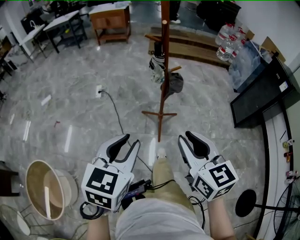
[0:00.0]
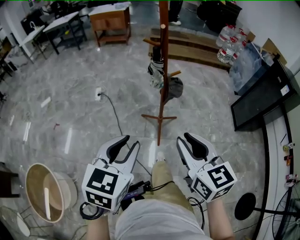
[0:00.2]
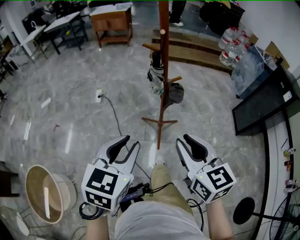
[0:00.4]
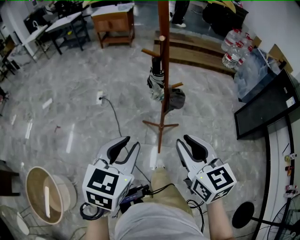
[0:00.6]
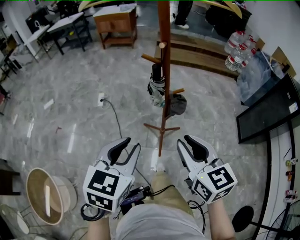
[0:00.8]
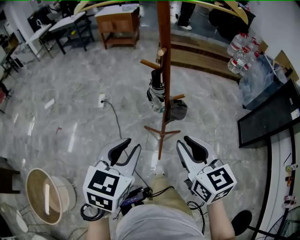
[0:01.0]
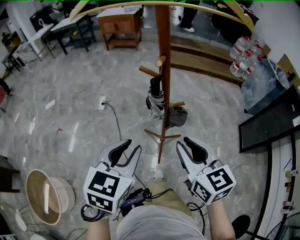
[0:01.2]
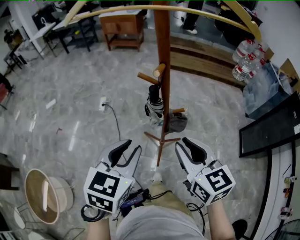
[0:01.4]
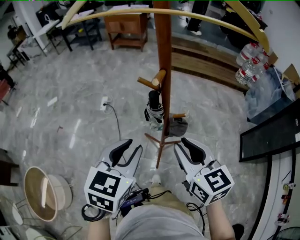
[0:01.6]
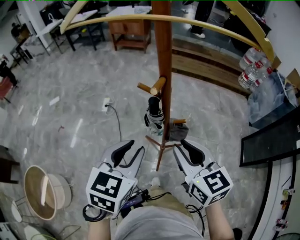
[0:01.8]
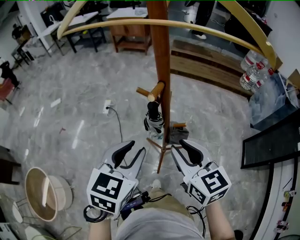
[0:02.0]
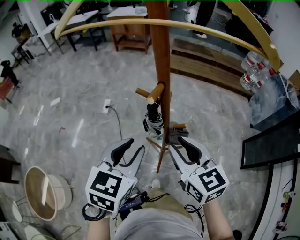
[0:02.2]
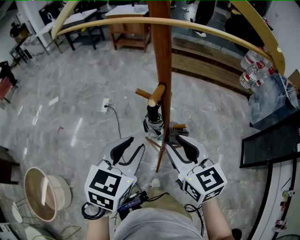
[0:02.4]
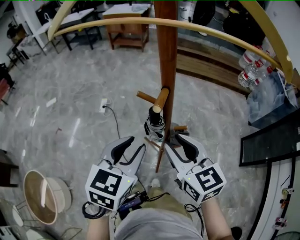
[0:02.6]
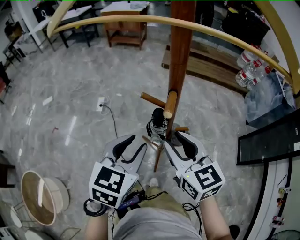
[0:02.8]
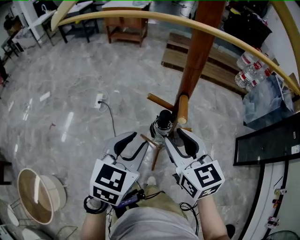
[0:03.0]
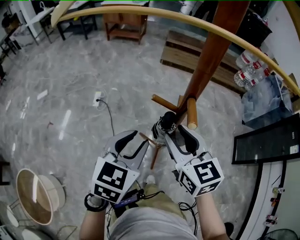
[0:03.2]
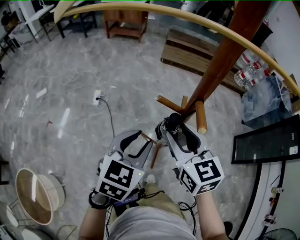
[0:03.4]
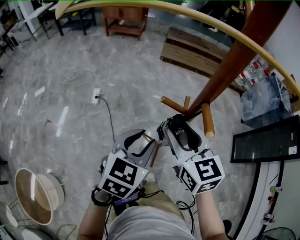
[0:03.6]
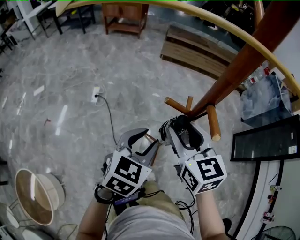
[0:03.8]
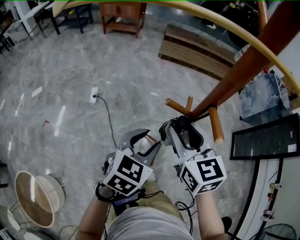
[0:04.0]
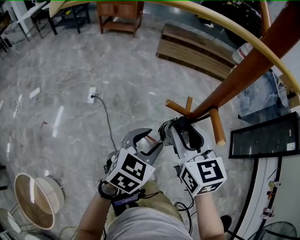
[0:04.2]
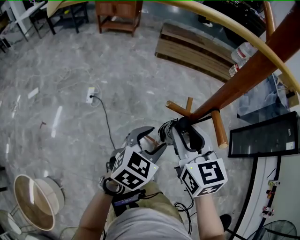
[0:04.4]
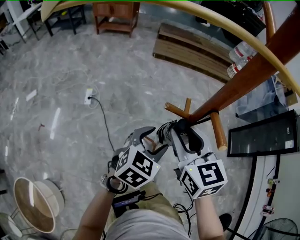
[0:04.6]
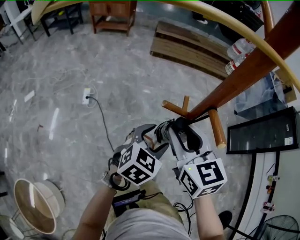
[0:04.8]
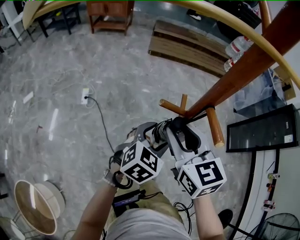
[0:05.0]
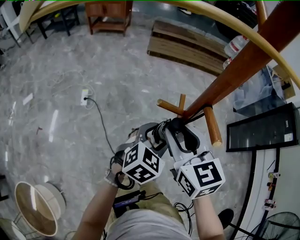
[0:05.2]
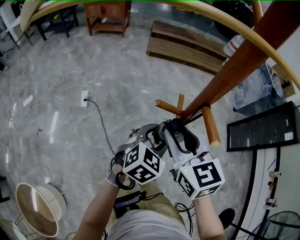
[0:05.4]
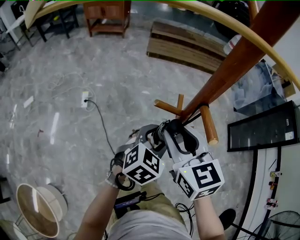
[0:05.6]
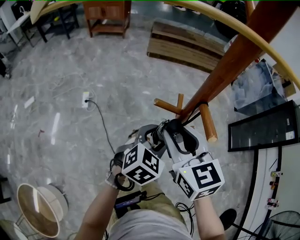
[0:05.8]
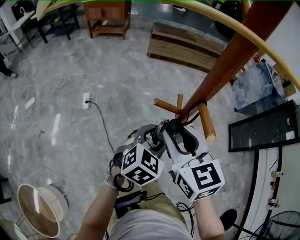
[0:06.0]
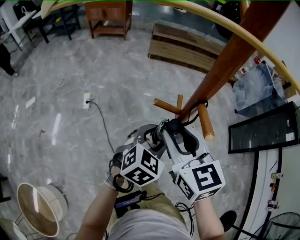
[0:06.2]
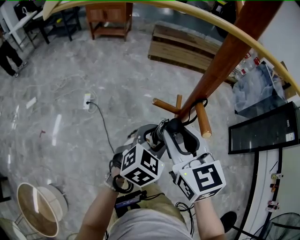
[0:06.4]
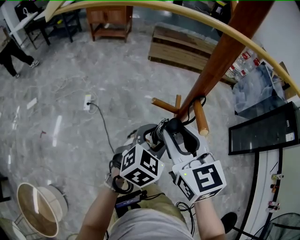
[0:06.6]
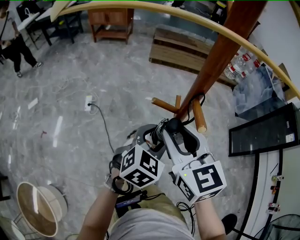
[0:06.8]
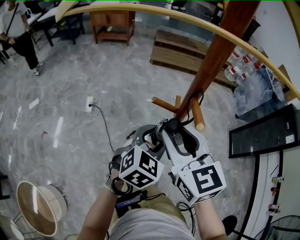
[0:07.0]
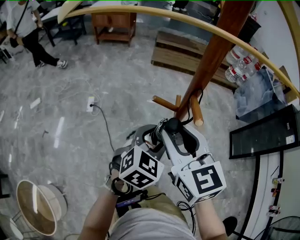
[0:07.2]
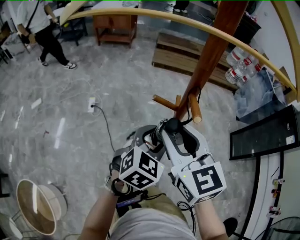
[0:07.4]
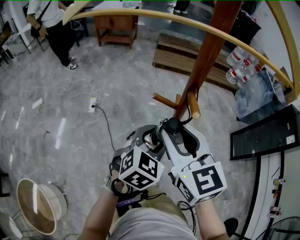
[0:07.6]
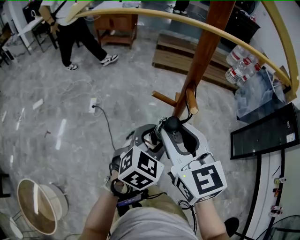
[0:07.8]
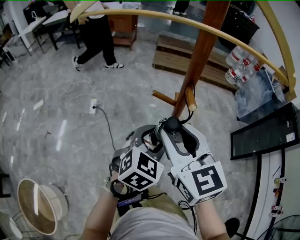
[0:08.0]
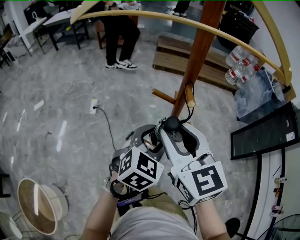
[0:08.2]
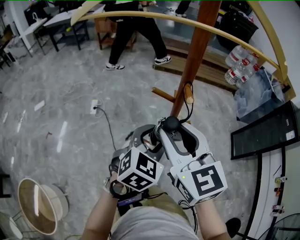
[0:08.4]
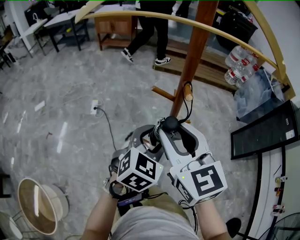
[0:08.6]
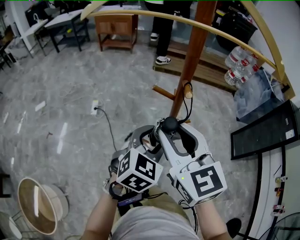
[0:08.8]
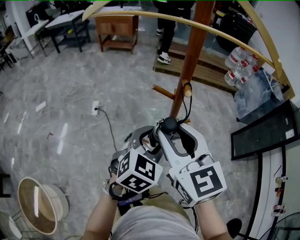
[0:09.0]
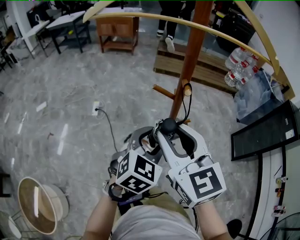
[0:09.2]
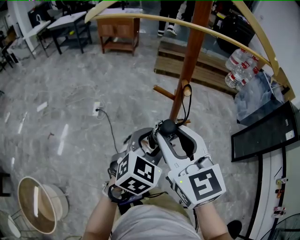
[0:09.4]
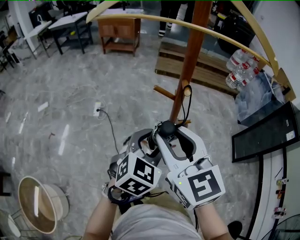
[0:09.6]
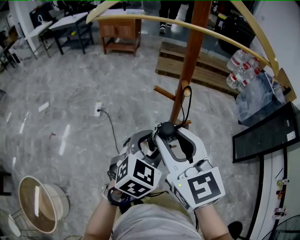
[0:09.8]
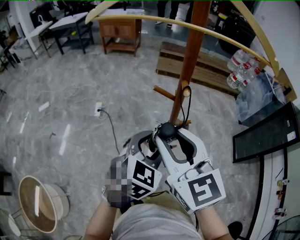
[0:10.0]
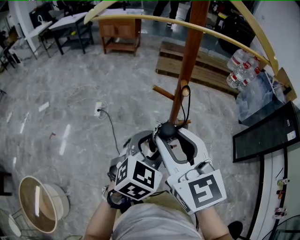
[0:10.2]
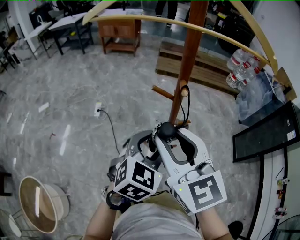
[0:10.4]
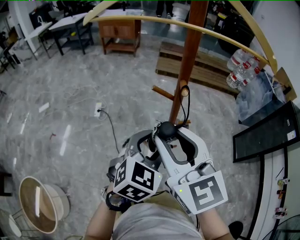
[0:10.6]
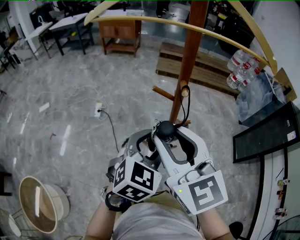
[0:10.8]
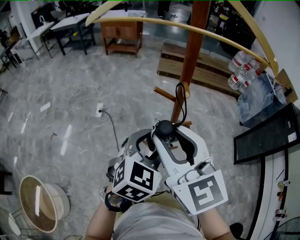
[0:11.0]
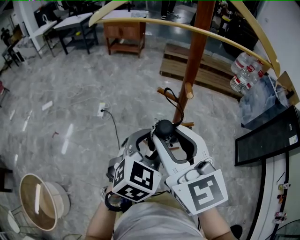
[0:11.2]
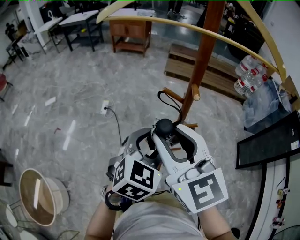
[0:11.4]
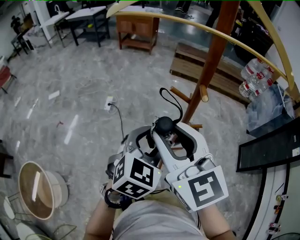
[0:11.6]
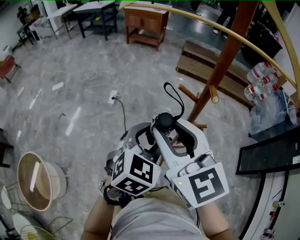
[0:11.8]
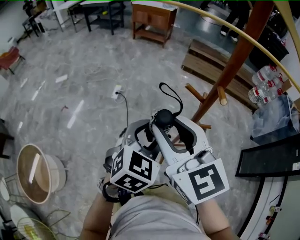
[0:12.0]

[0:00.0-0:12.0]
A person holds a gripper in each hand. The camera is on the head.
0:00.0 to 0:01.6: The two grippers go some 25 cm forward.
0:01.6 to 0:03.0: Both grippers move forward, approximately 10 cm.
0:03.0 to 0:04.4: The right gripper moves roughly 5 cm, while the left gripper is displaced downward by approximately 5 cm.
0:04.4 to 0:06.0: The grippers stay close to where they were, moving slightly.
0:06.0 to 0:07.6: Both grippers travel together upward, some 5 cm.
0:07.6 to 0:09.0: The grippers both shift backward by approximately 5 cm.
0:09.0 to 0:10.4: There are only small adjustments of the grippers.
0:10.4 to 0:12.0: Both grippers move to the left, some 5 cm.

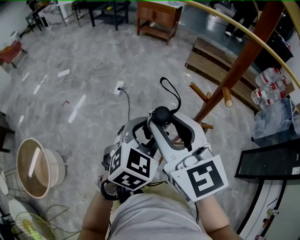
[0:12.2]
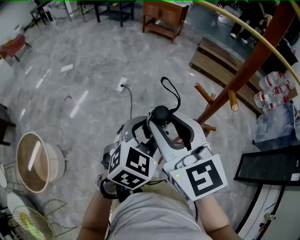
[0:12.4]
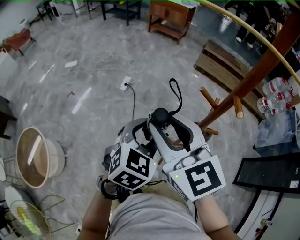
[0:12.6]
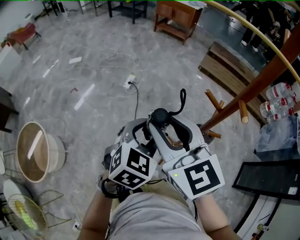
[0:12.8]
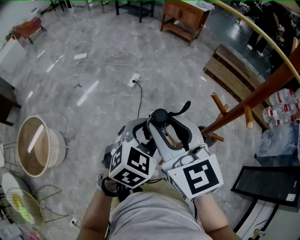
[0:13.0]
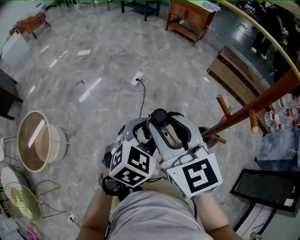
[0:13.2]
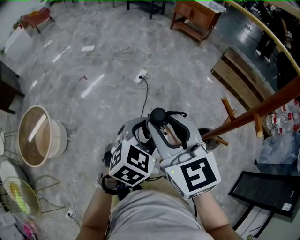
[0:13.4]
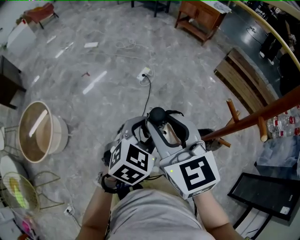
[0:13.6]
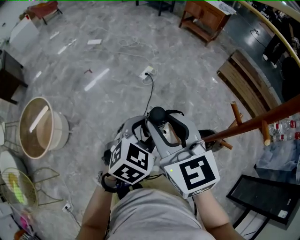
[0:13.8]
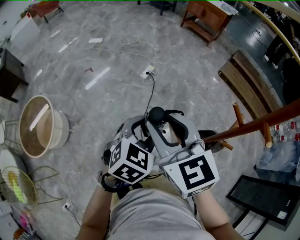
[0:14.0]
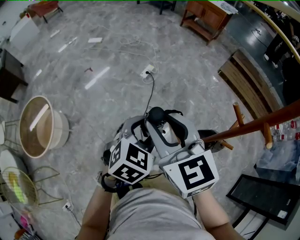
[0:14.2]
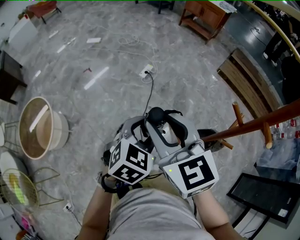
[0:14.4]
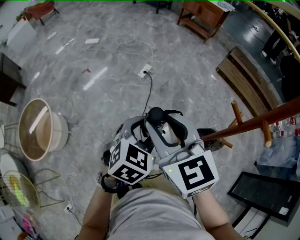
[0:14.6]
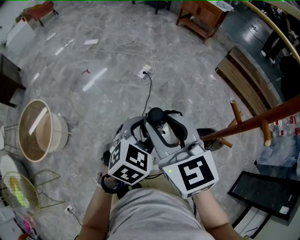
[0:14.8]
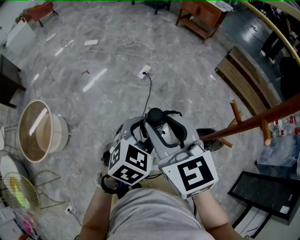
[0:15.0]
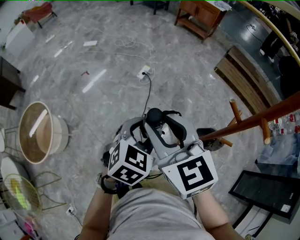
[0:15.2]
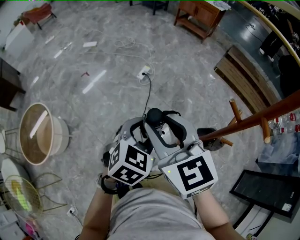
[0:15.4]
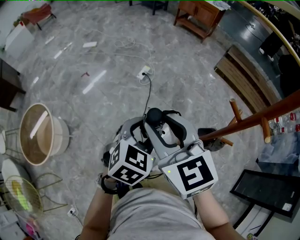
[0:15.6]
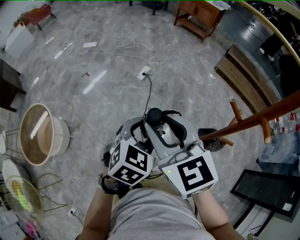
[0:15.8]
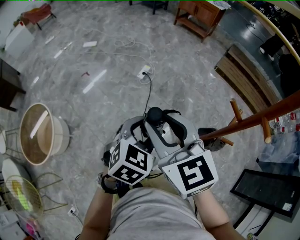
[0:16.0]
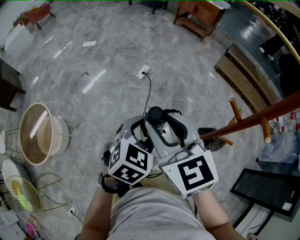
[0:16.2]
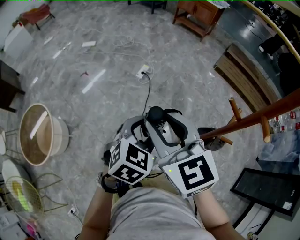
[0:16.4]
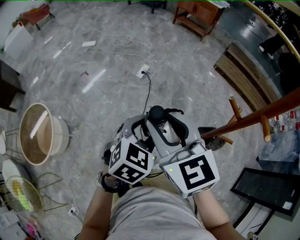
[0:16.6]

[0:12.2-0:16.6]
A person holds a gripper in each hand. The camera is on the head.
0:12.2 to 0:13.6: Both grippers move to the left and downward, about 10 cm.
0:13.6 to 0:15.2: The grippers make only small movements.
0:15.2 to 0:16.6: The two grippers keep their place.

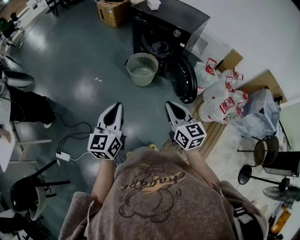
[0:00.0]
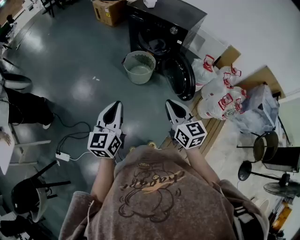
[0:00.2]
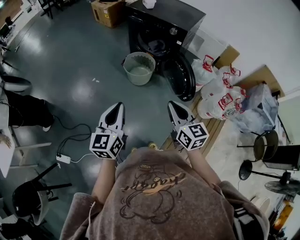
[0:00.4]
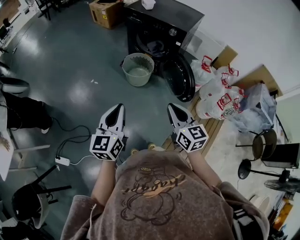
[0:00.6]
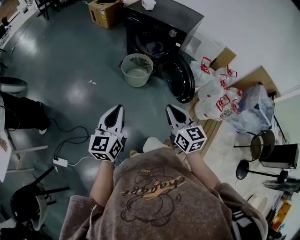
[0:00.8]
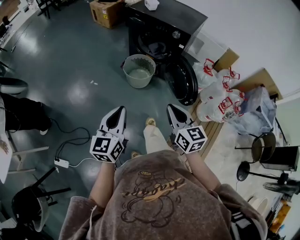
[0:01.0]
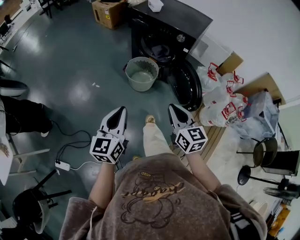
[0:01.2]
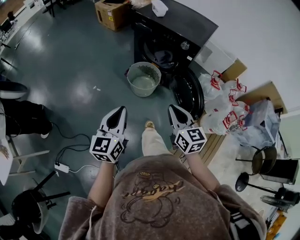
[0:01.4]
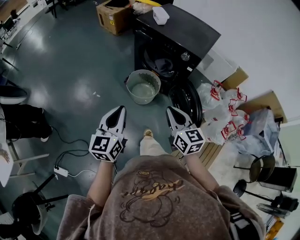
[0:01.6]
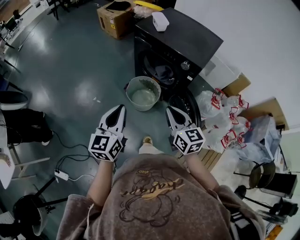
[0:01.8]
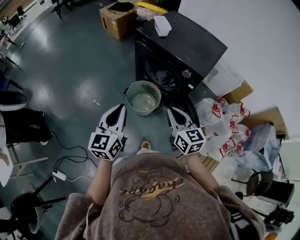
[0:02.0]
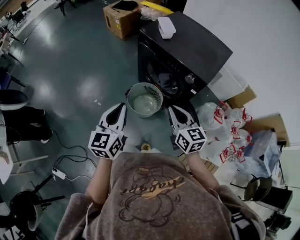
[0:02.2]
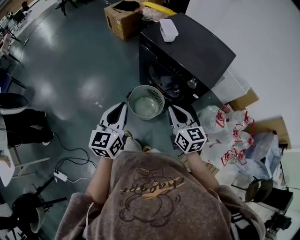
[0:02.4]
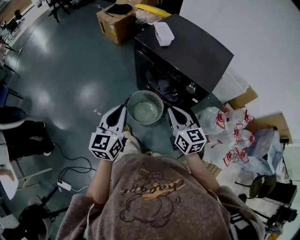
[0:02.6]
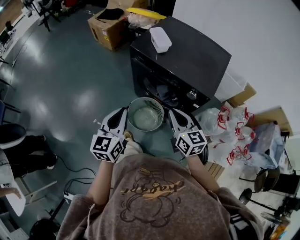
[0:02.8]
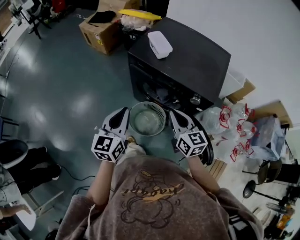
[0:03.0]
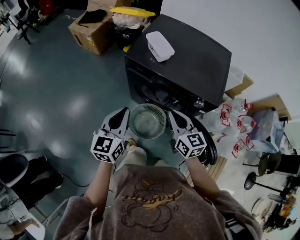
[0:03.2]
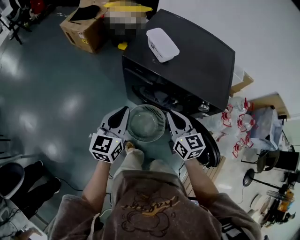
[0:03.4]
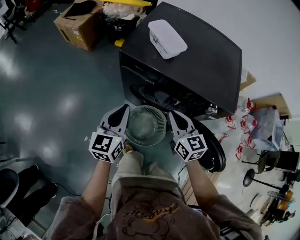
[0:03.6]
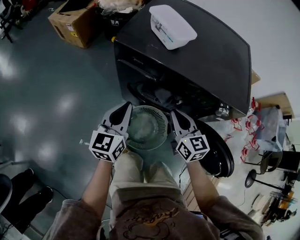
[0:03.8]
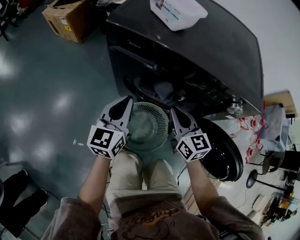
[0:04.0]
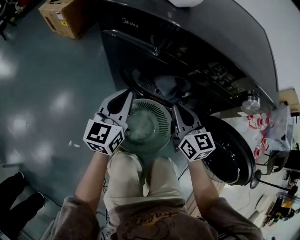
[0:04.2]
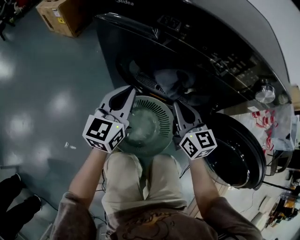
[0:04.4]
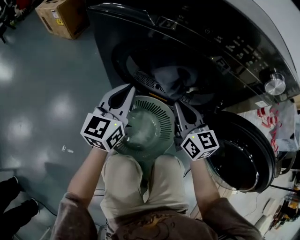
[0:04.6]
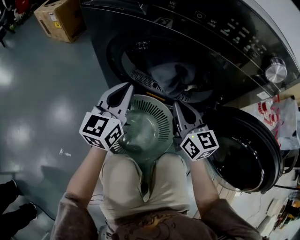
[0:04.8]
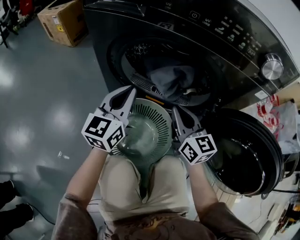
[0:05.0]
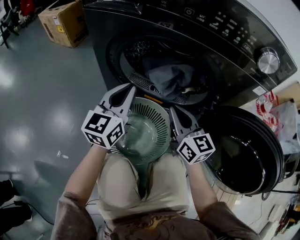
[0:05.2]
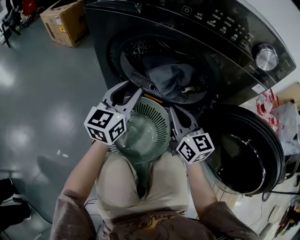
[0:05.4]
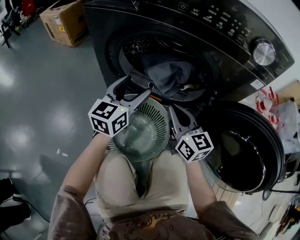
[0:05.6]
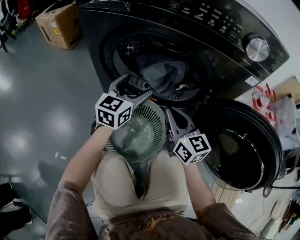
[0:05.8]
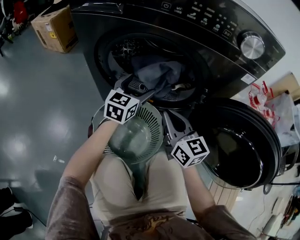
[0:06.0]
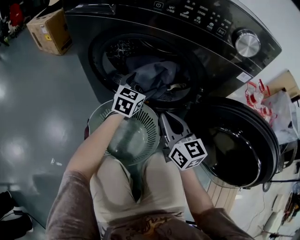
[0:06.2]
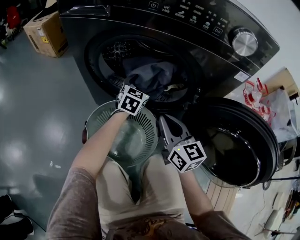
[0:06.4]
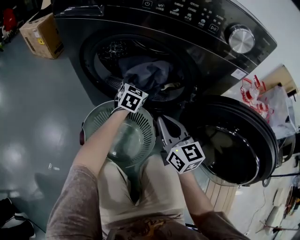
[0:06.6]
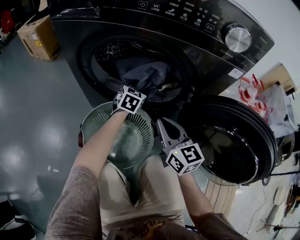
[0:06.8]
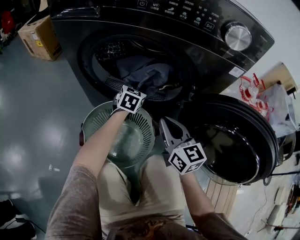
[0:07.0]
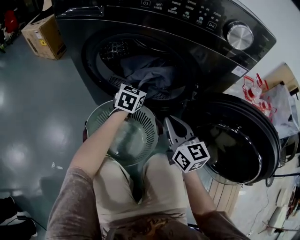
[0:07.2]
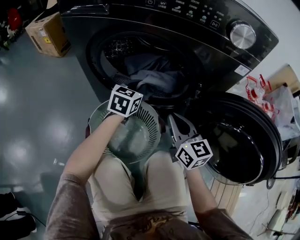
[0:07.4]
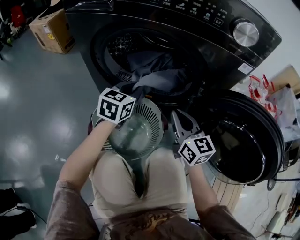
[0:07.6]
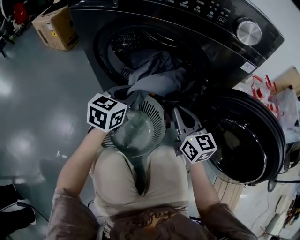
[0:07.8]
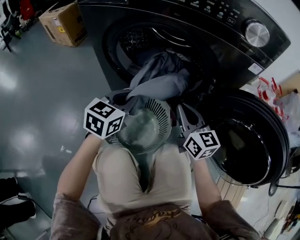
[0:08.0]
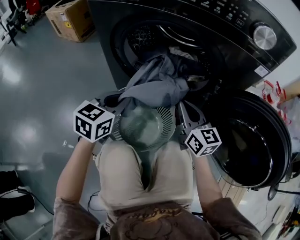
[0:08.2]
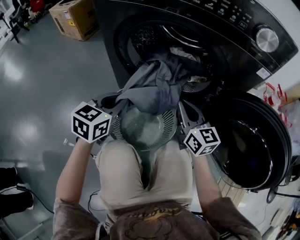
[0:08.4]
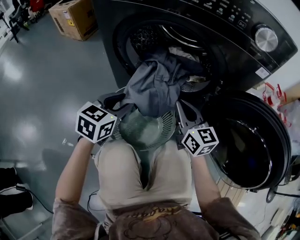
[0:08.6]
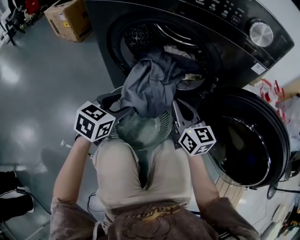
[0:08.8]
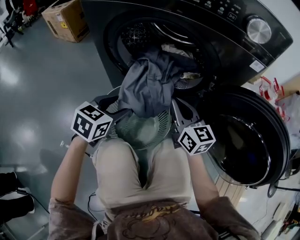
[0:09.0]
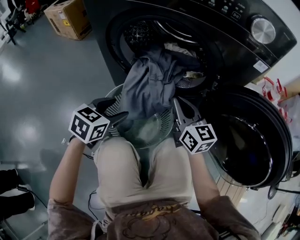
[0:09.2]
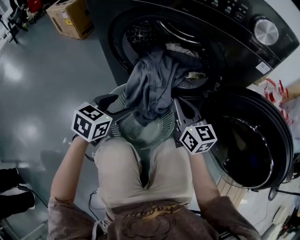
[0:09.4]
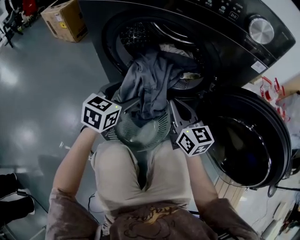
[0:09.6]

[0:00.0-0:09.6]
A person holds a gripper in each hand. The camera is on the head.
0:00.0 to 0:01.6: The two grippers go approximately 25 cm forward.
0:01.6 to 0:03.2: The two grippers go some 40 cm forward.
0:03.2 to 0:04.8: The grippers both shift downward by about 40 cm.
0:04.8 to 0:06.4: The left gripper moves to the right, downward and forward, roughly 25 cm, changes its angle by about 30 degrees, and opens its fingers; the right gripper is displaced backward by some 5 cm.
0:06.4 to 0:08.0: The left gripper is displaced backward, to the left and upward by some 20 cm, and closes up.
0:08.0 to 0:09.6: The left gripper opens.
